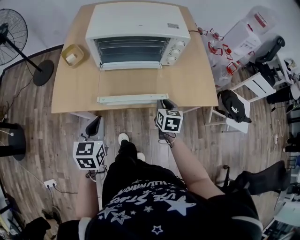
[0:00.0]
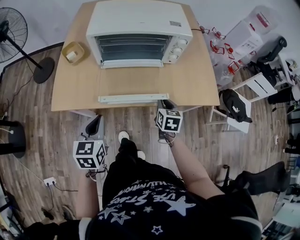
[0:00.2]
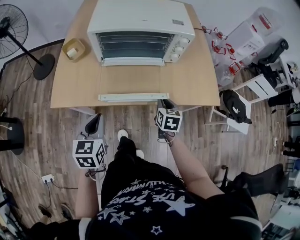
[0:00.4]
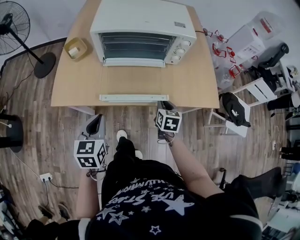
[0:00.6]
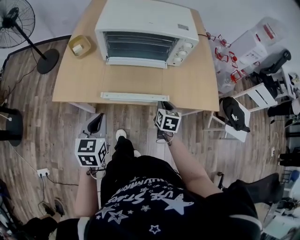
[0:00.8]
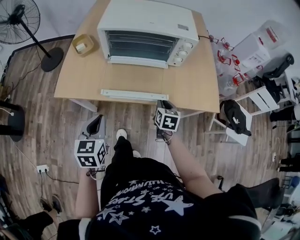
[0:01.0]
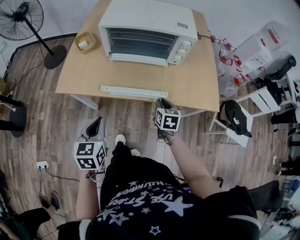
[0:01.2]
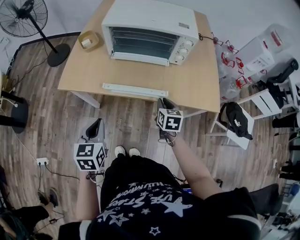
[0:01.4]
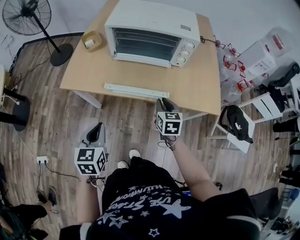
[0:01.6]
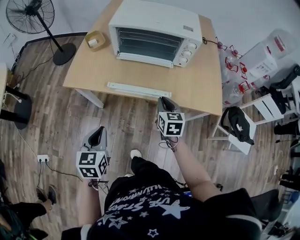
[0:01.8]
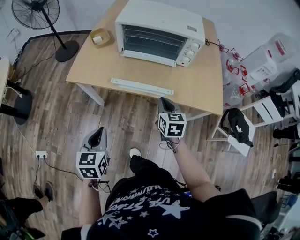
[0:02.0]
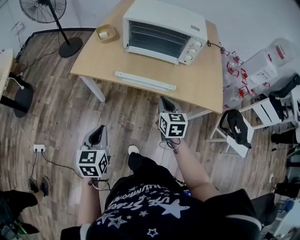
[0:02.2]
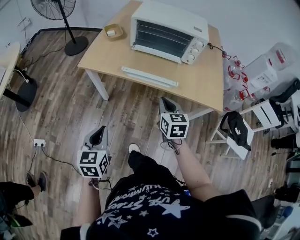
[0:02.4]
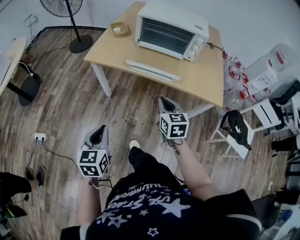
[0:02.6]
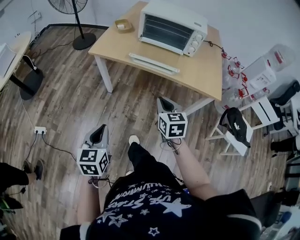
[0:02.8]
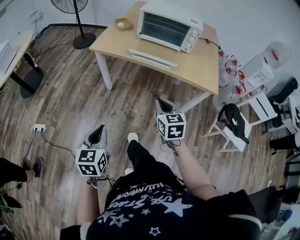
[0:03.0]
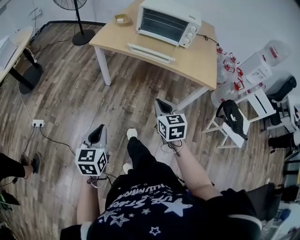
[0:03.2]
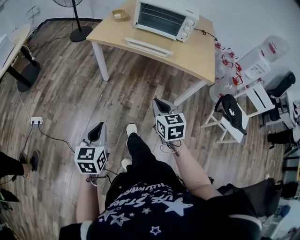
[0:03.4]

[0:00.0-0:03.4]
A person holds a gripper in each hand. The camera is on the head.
0:00.0 to 0:01.6: The left gripper shifts about 10 cm backward.
0:01.6 to 0:03.4: The two grippers go some 35 cm backward. The right gripper turns by roughly 20 degrees.

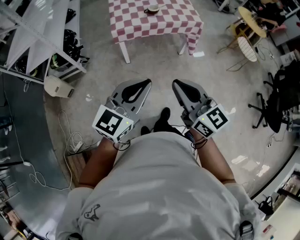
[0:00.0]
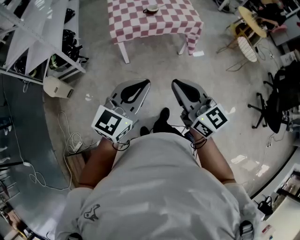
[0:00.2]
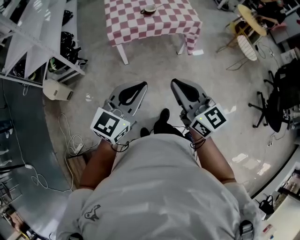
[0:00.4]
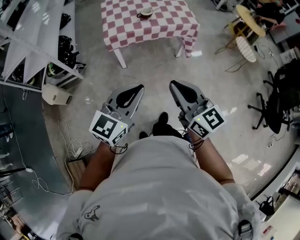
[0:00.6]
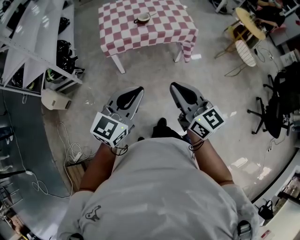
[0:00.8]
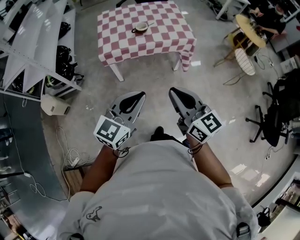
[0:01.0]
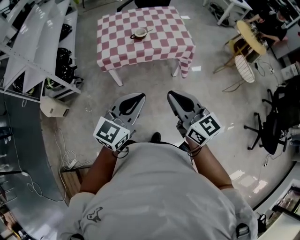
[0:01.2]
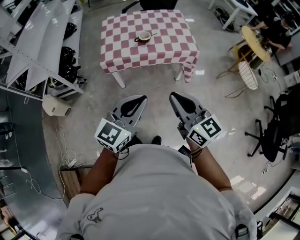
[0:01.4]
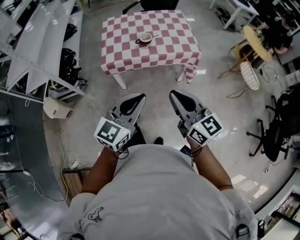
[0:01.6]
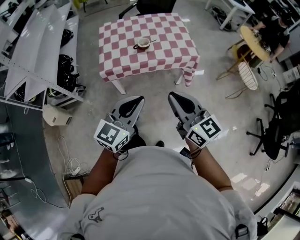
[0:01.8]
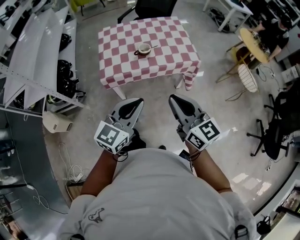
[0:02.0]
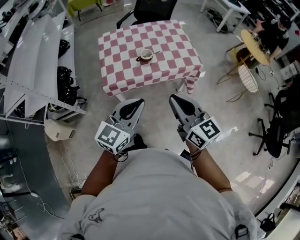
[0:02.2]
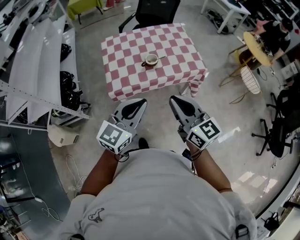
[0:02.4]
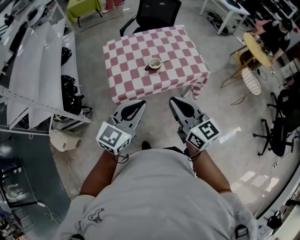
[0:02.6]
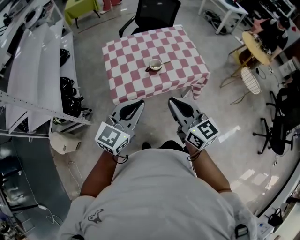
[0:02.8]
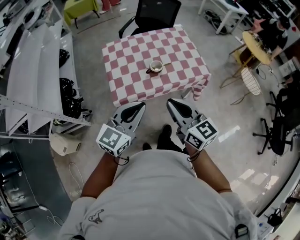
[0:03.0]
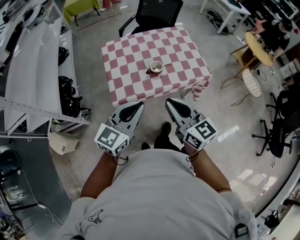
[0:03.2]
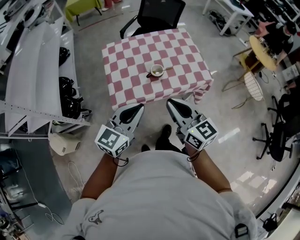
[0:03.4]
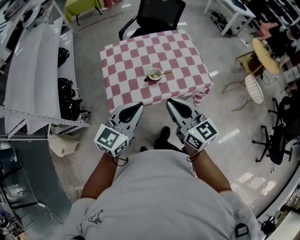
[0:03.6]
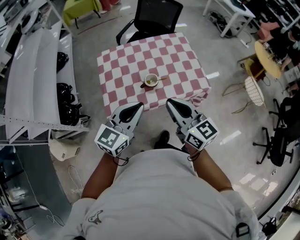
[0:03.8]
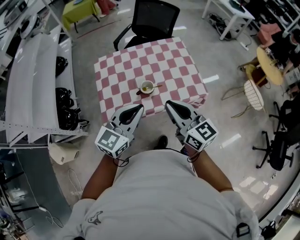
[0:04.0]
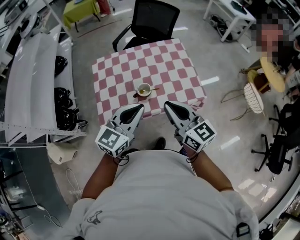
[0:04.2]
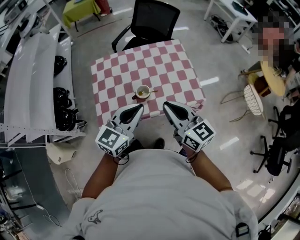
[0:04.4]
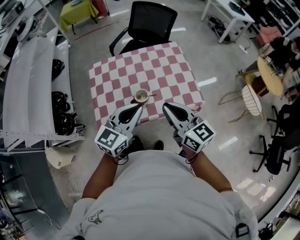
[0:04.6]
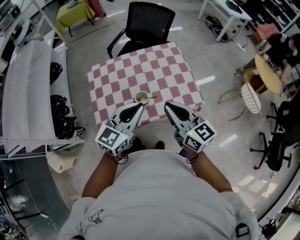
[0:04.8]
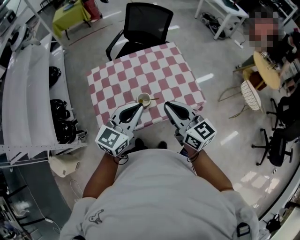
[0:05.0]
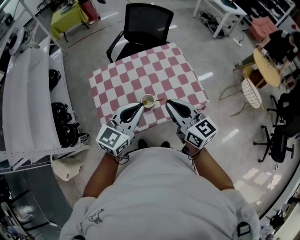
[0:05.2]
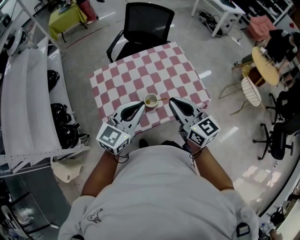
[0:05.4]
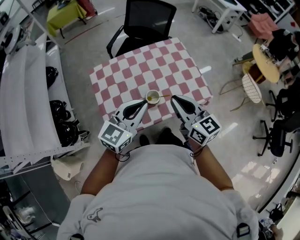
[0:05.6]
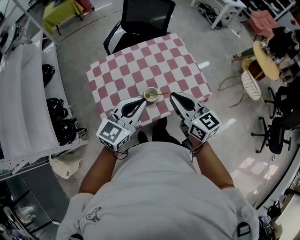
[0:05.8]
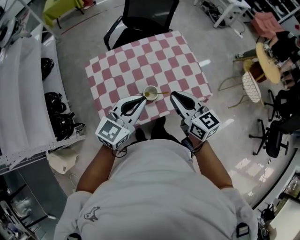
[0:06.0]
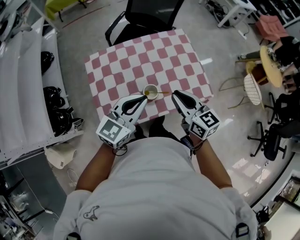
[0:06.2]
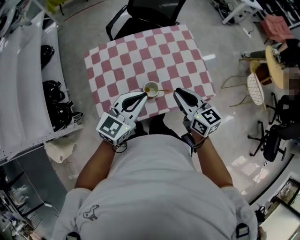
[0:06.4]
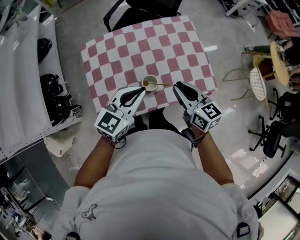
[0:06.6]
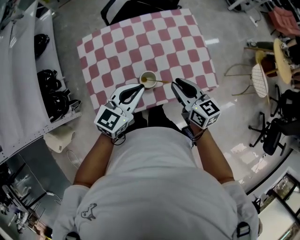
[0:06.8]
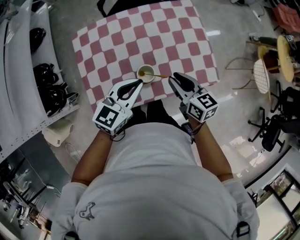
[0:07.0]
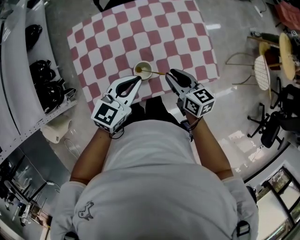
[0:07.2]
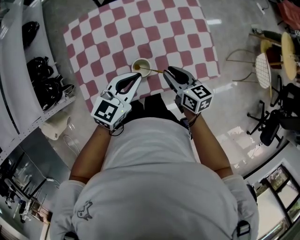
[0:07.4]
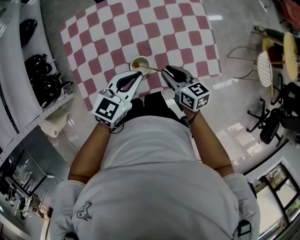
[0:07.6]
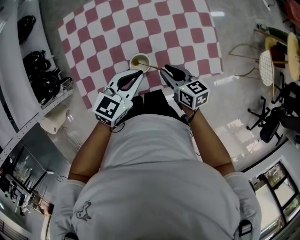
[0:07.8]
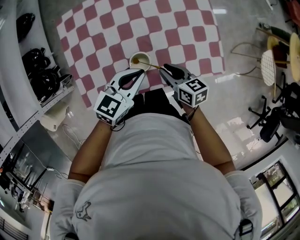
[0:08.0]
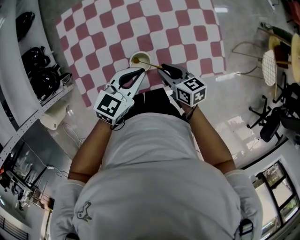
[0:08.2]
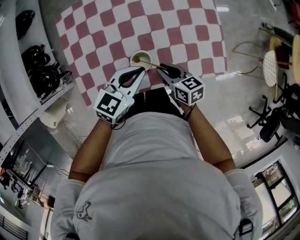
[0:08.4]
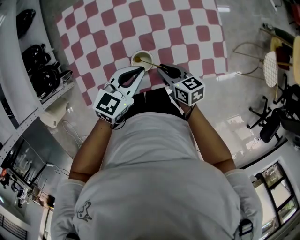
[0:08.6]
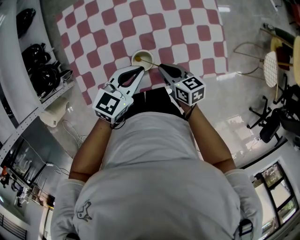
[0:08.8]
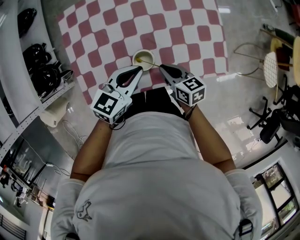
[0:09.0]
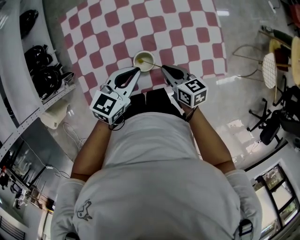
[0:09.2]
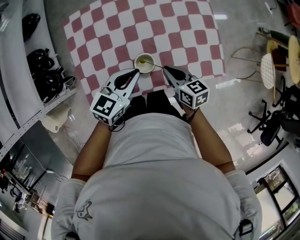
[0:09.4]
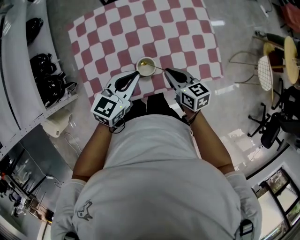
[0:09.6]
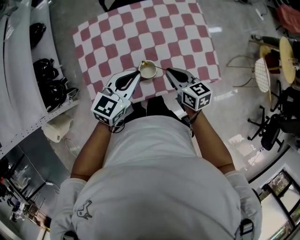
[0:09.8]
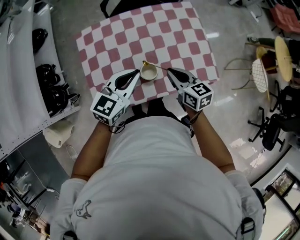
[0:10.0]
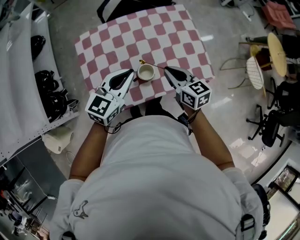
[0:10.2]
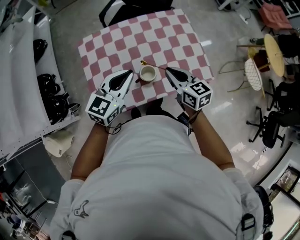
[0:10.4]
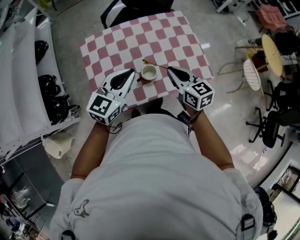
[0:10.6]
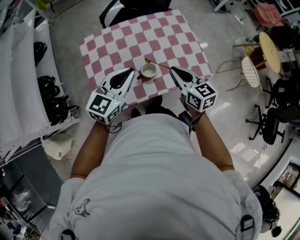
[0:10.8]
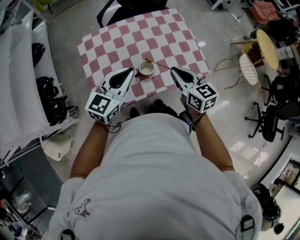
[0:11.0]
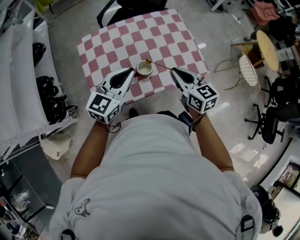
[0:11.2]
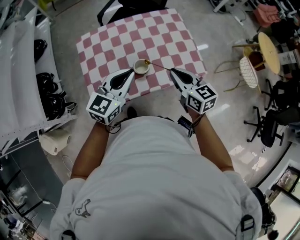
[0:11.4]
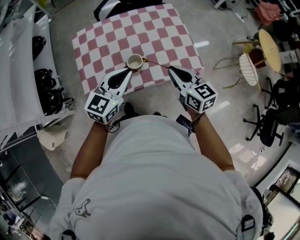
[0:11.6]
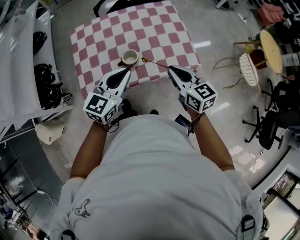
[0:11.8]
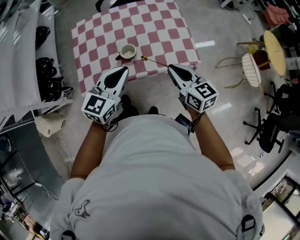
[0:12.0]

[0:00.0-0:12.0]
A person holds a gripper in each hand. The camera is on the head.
0:00.0 to 0:01.6: Both grippers move forward and to the right, roughly 25 cm.
0:01.6 to 0:03.0: The two grippers go some 25 cm forward and to the left.
0:03.0 to 0:04.4: The two grippers go about 25 cm forward and to the right.
0:04.4 to 0:06.0: Both grippers travel together forward and to the left, some 10 cm.
0:06.0 to 0:07.6: The right gripper shifts roughly 25 cm downward, and swivels roughly 30 degrees, while the left gripper travels downward and forward by roughly 20 cm.
0:07.6 to 0:09.0: The right gripper heads downward, covering approximately 5 cm.
0:09.0 to 0:10.4: The left gripper travels upward and to the left by approximately 15 cm, while the right gripper moves upward, approximately 20 cm, and swivels some 20 degrees.
0:10.4 to 0:12.0: The left gripper is displaced backward and to the right by about 15 cm; the right gripper shifts about 20 cm to the right and backward.

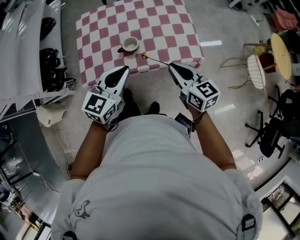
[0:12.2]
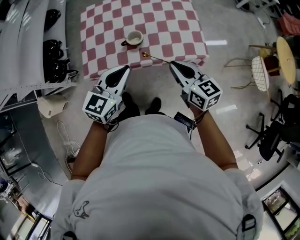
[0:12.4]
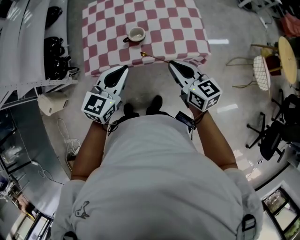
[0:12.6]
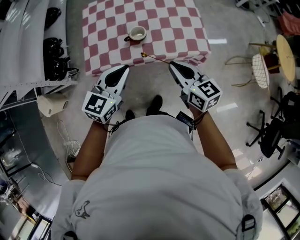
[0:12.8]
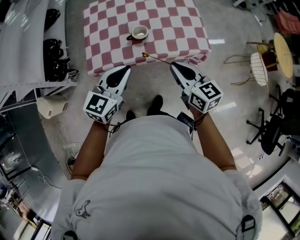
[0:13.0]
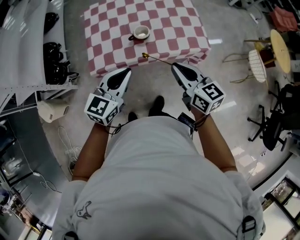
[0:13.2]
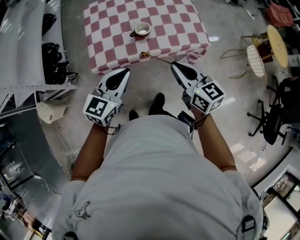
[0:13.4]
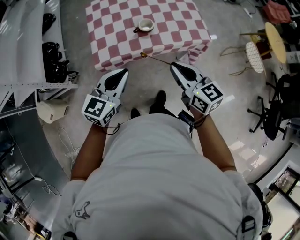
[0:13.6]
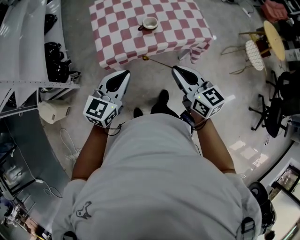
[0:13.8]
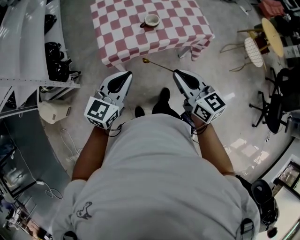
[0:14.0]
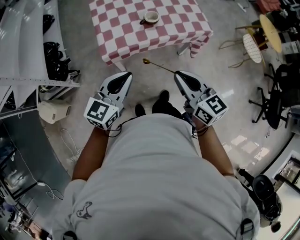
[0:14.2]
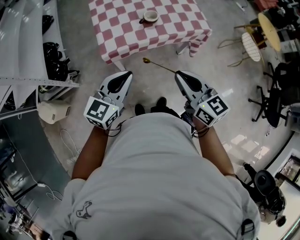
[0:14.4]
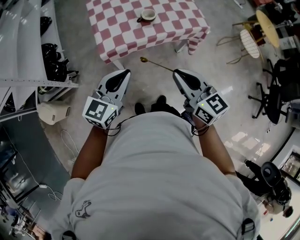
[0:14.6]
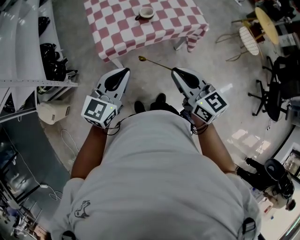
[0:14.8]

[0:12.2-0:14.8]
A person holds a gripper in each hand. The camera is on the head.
0:12.2 to 0:13.4: Both grippers travel together to the left and backward, about 15 cm.
0:13.4 to 0:14.8: Both grippers move backward and to the left, some 15 cm.

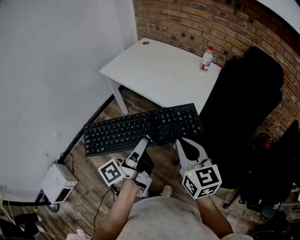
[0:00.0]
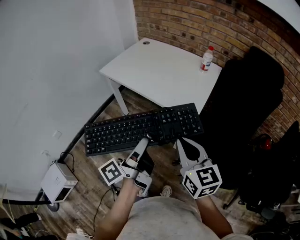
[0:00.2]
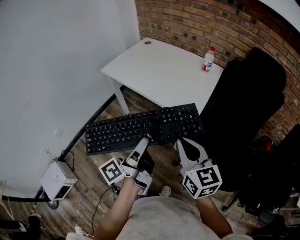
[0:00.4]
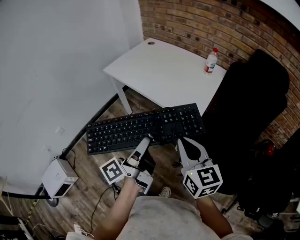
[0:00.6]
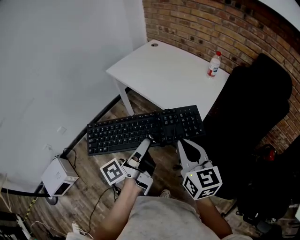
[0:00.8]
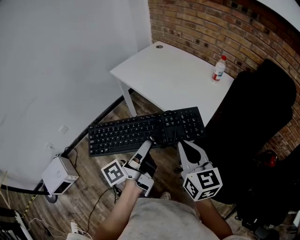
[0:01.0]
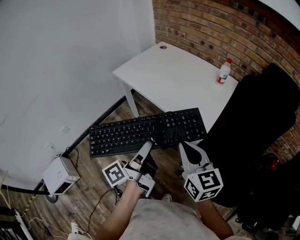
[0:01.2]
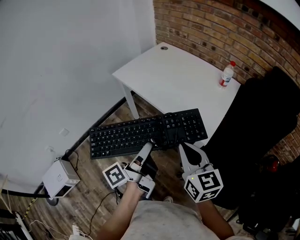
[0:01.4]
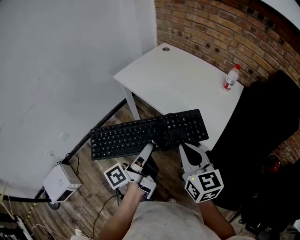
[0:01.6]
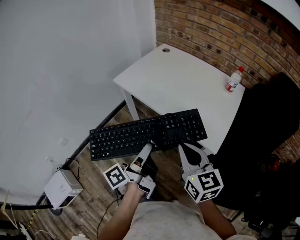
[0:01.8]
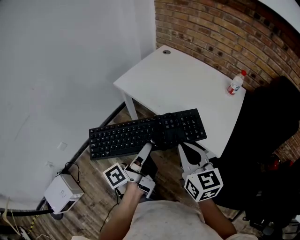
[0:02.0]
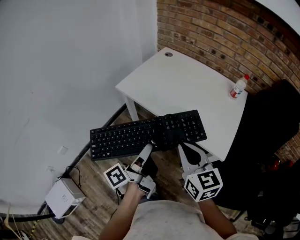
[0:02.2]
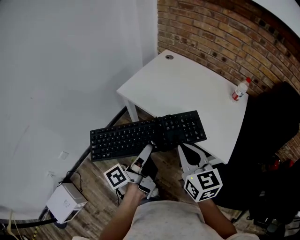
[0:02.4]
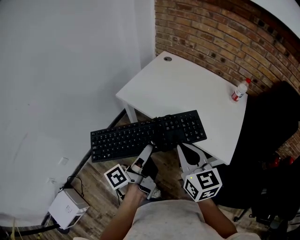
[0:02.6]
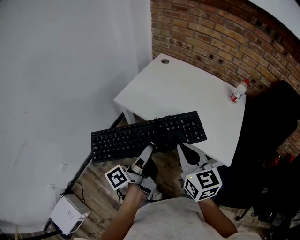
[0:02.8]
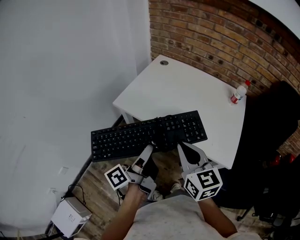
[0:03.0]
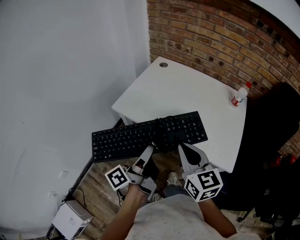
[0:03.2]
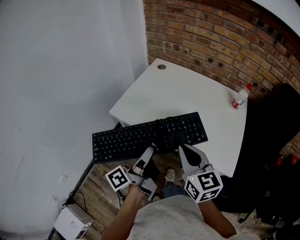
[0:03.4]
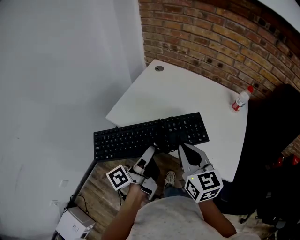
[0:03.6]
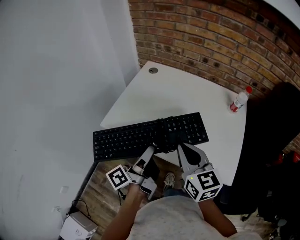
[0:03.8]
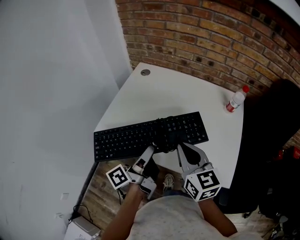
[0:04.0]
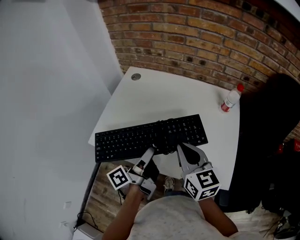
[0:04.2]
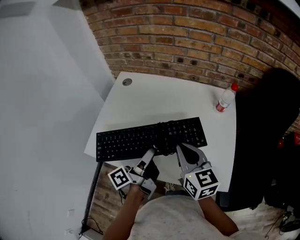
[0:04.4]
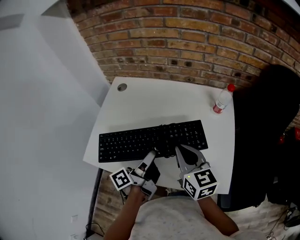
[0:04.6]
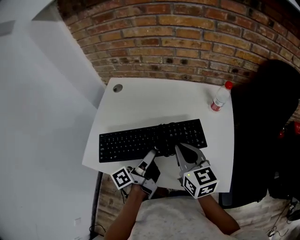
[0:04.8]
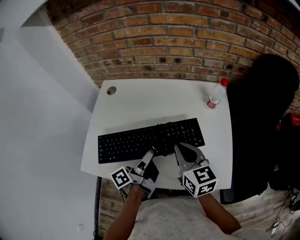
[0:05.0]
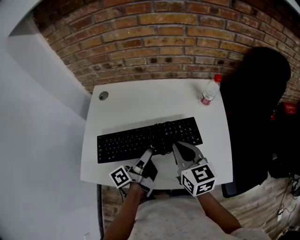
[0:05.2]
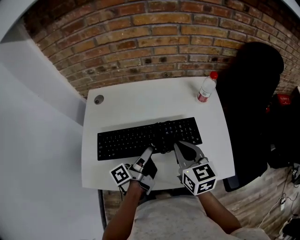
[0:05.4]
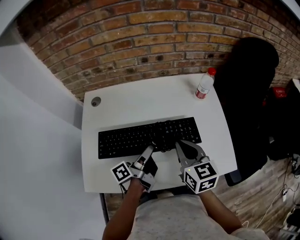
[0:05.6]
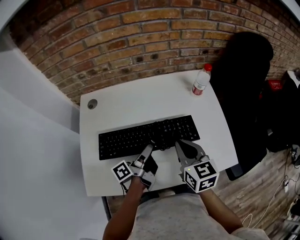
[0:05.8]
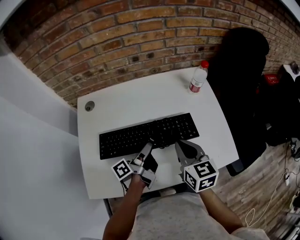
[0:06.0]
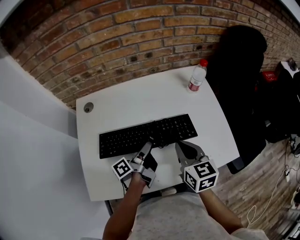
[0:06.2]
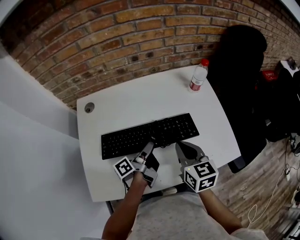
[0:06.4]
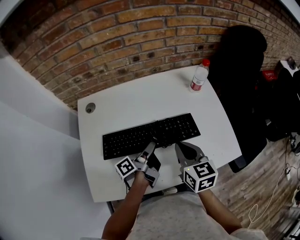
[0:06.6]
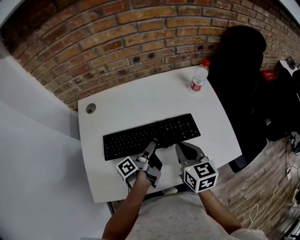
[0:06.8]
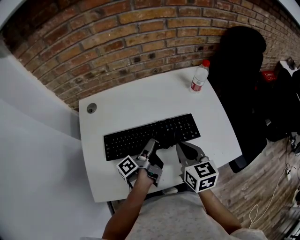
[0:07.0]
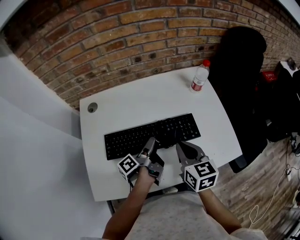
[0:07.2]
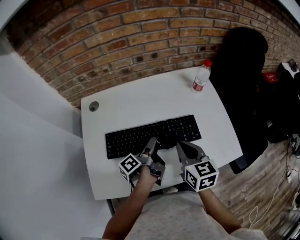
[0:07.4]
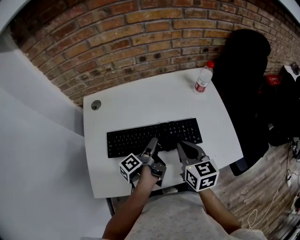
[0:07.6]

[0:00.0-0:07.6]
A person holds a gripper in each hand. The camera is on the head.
0:00.0 to 0:01.6: The right gripper ends up approximately 15 cm from where it was.
0:01.6 to 0:03.0: The right gripper shifts by some 25 cm.
0:03.0 to 0:04.6: The right gripper ends up some 30 cm from where it was.
0:04.6 to 0:06.0: The right gripper changes its angle by approximately 30 degrees.
